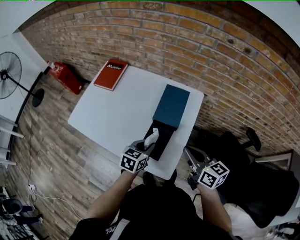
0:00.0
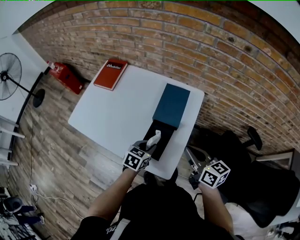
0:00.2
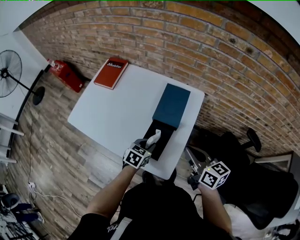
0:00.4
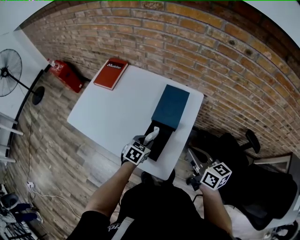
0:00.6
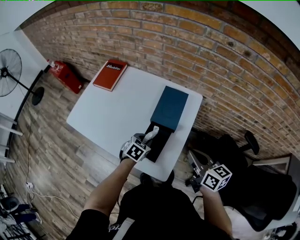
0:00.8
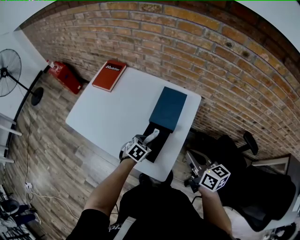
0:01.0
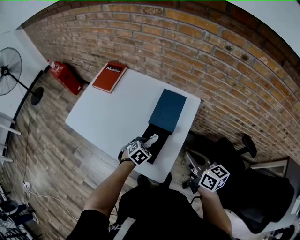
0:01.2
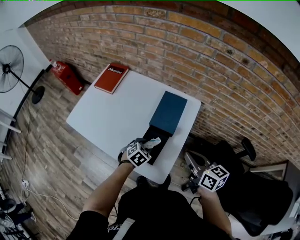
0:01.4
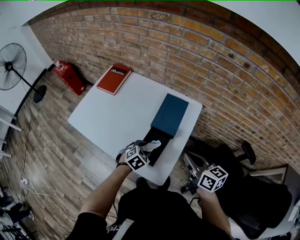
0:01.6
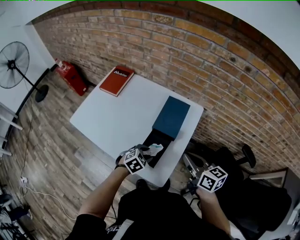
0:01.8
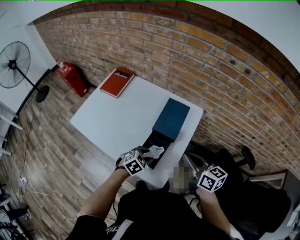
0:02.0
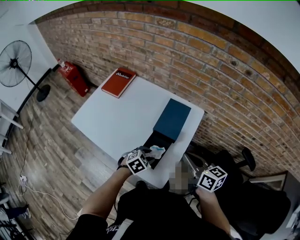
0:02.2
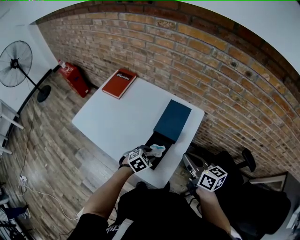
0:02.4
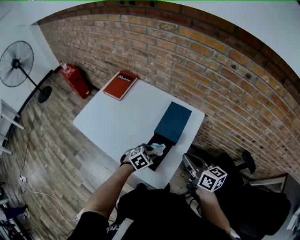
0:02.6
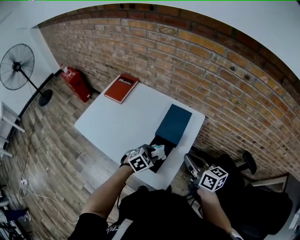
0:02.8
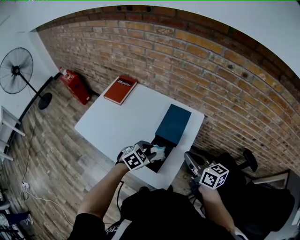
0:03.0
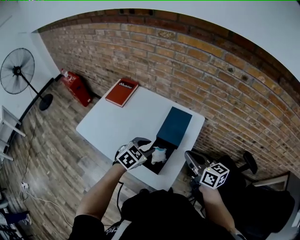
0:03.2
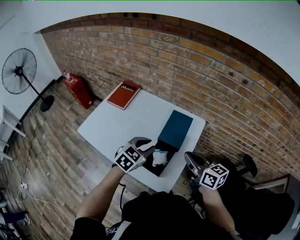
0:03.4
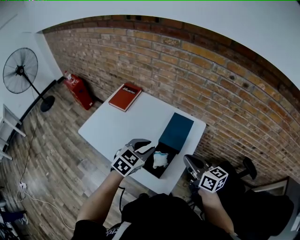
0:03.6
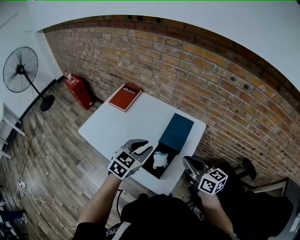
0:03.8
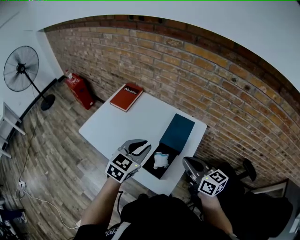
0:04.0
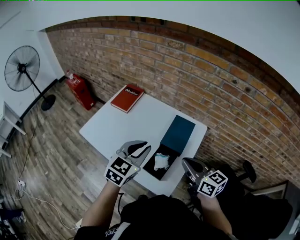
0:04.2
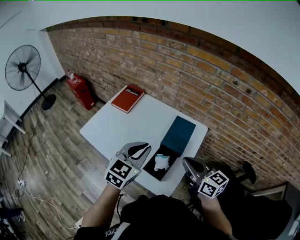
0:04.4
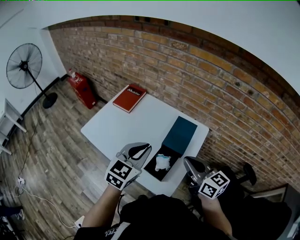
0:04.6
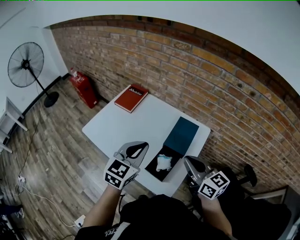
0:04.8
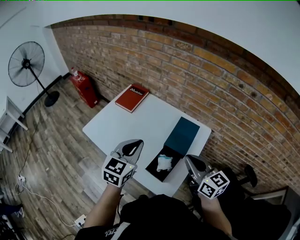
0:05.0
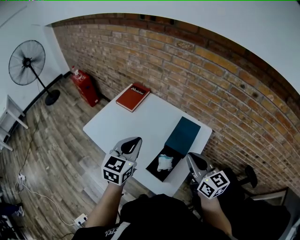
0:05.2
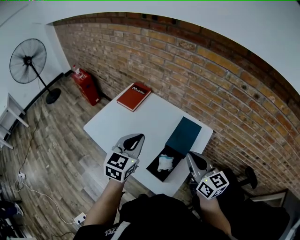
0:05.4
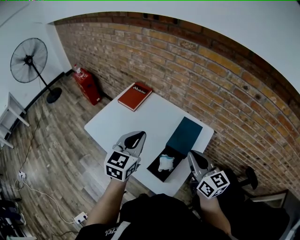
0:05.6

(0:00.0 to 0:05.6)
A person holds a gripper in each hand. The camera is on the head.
0:00.0 - 0:01.4: The left gripper heads downward, covering about 5 cm, rotates some 30 degrees, and opens.
0:01.4 - 0:02.8: The left gripper is displaced upward by roughly 5 cm.
0:02.8 - 0:04.2: The left gripper goes approximately 25 cm upward, and tilts its fingers some 30 degrees upward; the right gripper is displaced upward and to the left by roughly 10 cm.
0:04.2 - 0:05.6: The left gripper heads to the left, covering approximately 5 cm; the right gripper moves approximately 5 cm.

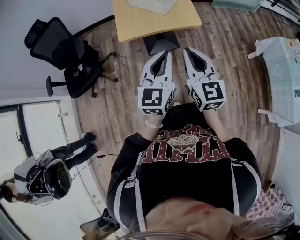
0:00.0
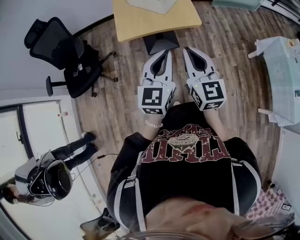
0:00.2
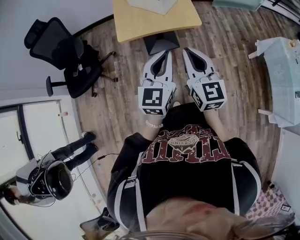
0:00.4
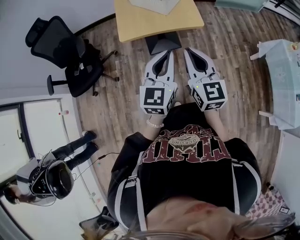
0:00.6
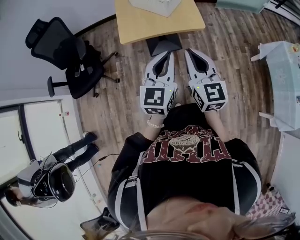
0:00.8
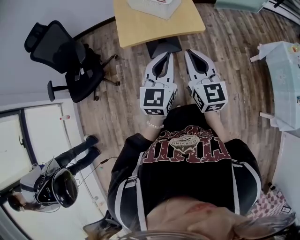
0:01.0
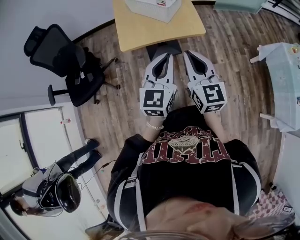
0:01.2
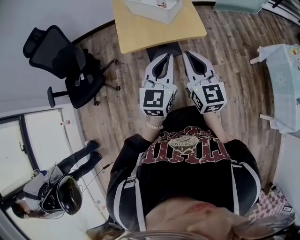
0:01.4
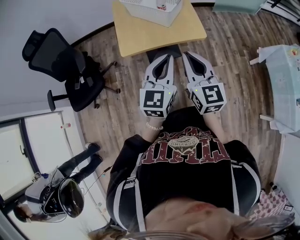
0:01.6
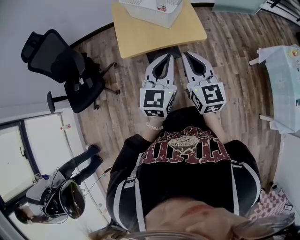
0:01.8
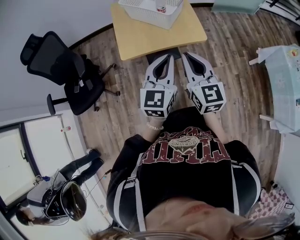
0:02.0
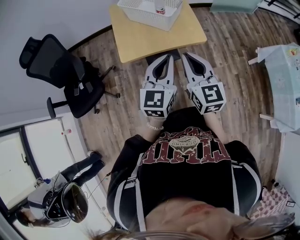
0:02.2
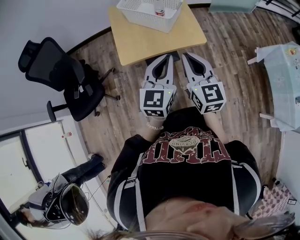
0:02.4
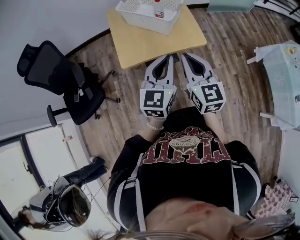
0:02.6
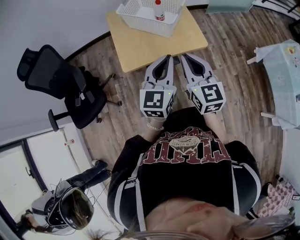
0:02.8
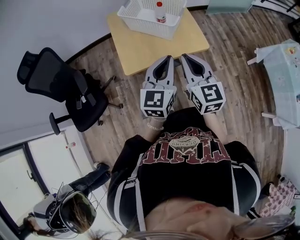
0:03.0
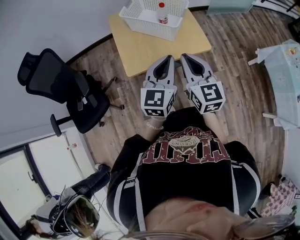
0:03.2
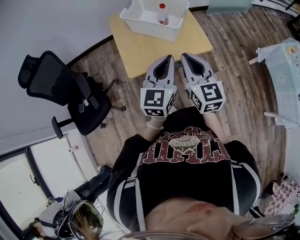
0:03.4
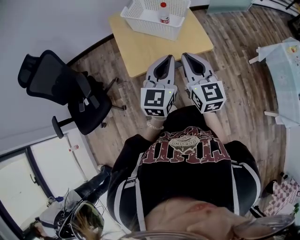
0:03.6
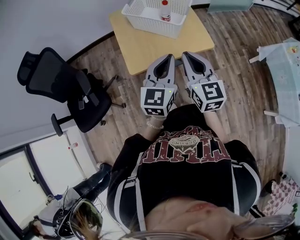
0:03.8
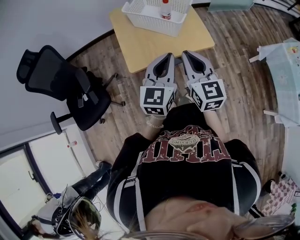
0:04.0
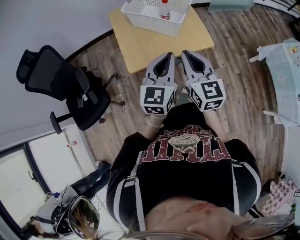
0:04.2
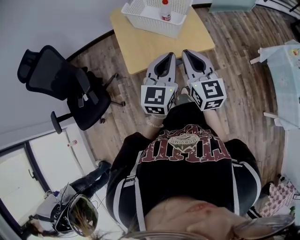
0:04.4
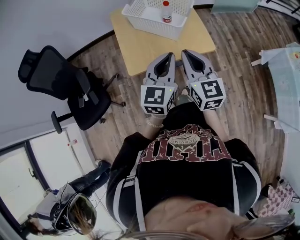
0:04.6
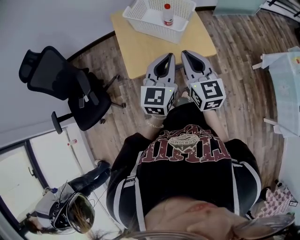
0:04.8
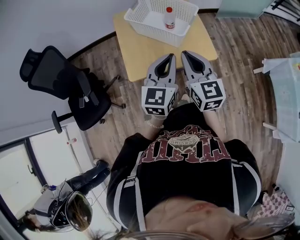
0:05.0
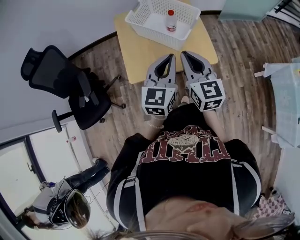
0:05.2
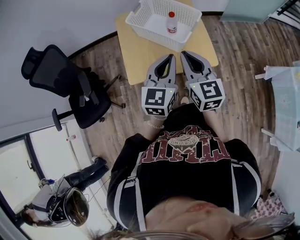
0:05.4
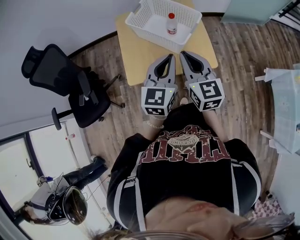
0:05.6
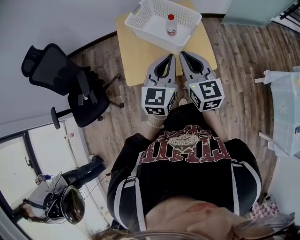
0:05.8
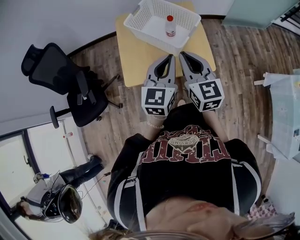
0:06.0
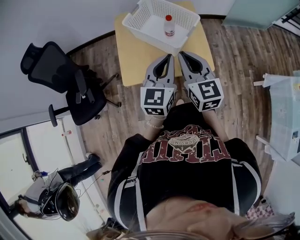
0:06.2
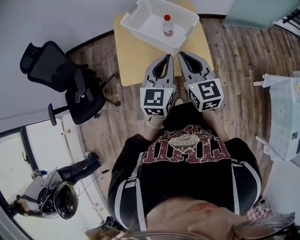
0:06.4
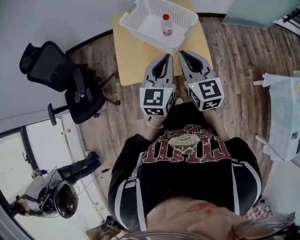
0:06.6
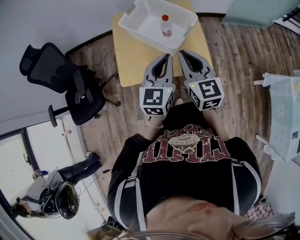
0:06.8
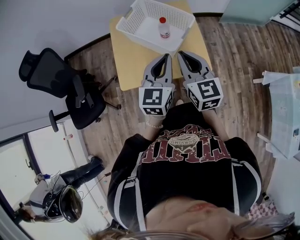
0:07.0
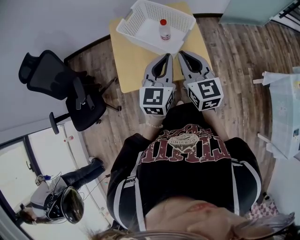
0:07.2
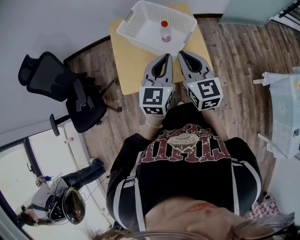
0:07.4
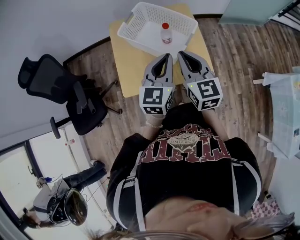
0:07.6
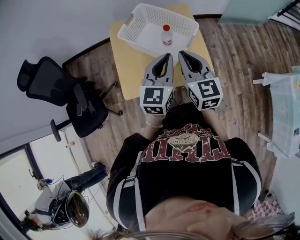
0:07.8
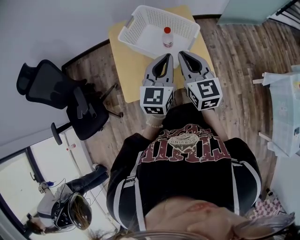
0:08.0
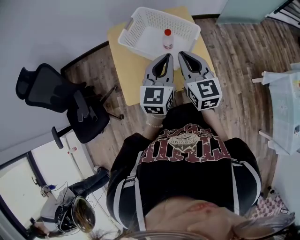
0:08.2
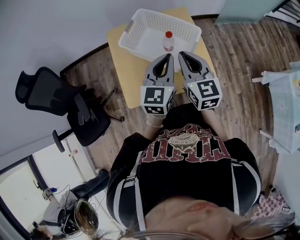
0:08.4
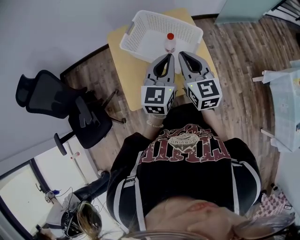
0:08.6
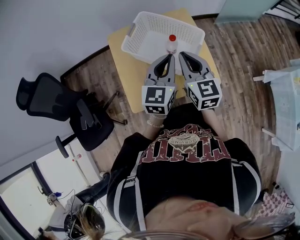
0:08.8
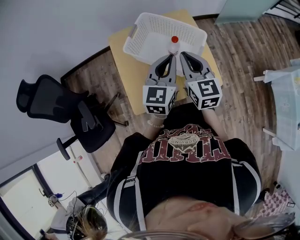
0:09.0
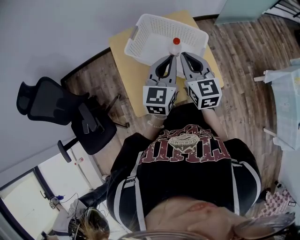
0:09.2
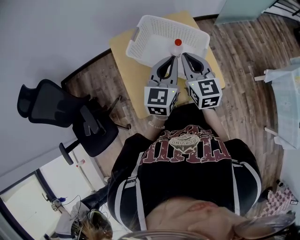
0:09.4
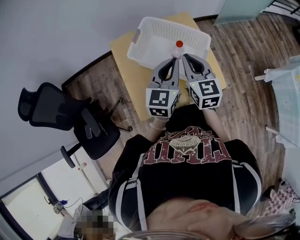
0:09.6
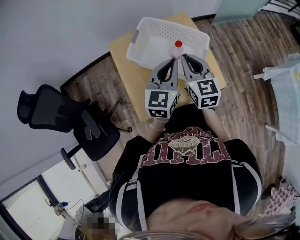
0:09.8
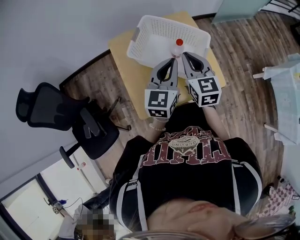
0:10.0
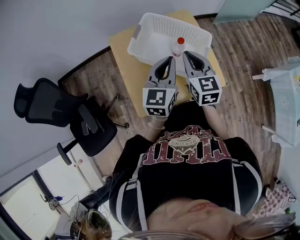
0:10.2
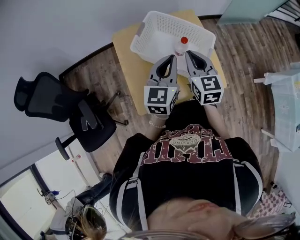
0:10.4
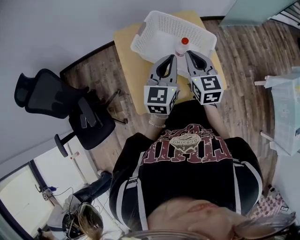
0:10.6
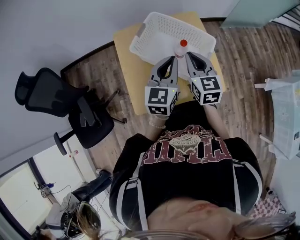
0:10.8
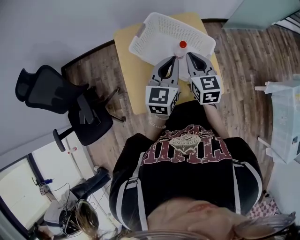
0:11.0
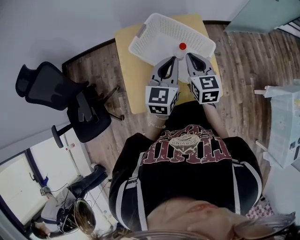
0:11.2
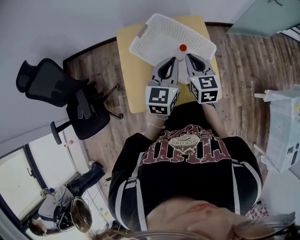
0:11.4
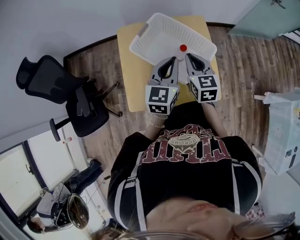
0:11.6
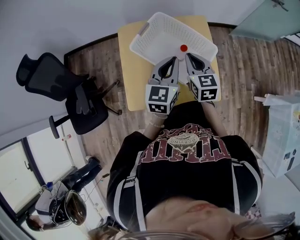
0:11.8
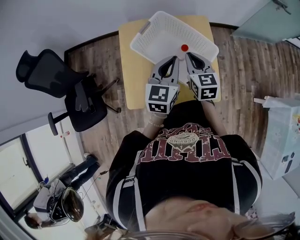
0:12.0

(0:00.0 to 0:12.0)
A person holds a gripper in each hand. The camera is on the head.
0:00.0 - 0:01.6: The grippers both shift forward by approximately 10 cm.
0:01.6 - 0:03.0: The two grippers go approximately 10 cm forward.
0:03.0 - 0:04.4: The grippers make only small movements.
0:04.4 - 0:06.0: The right gripper travels forward by about 15 cm. Meanwhile the left gripper heads forward and to the right, covering roughly 15 cm.
0:06.0 - 0:07.6: The two grippers go roughly 5 cm forward.
0:07.6 - 0:09.0: The grippers both shift forward by approximately 10 cm.
0:09.0 - 0:10.4: The grippers stay close to where they were, moving slightly.
0:10.4 - 0:12.0: The left gripper ends up approximately 5 cm from where it was. The right gripper changes place by about 5 cm.

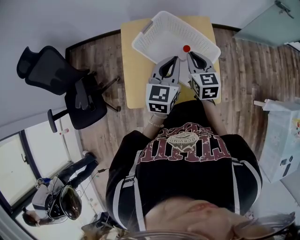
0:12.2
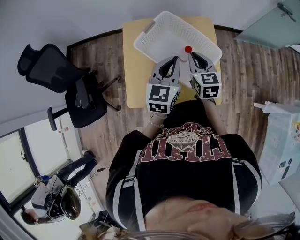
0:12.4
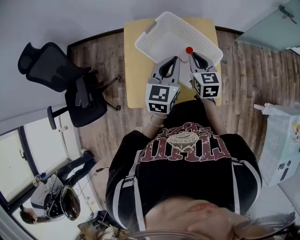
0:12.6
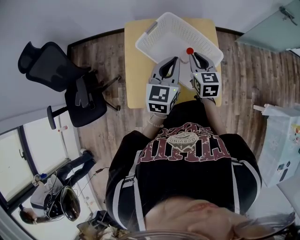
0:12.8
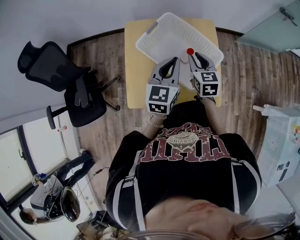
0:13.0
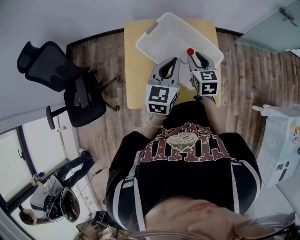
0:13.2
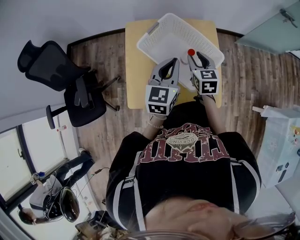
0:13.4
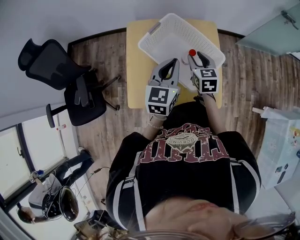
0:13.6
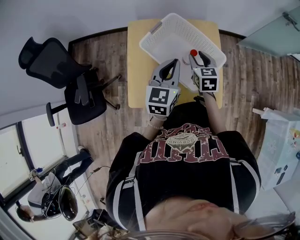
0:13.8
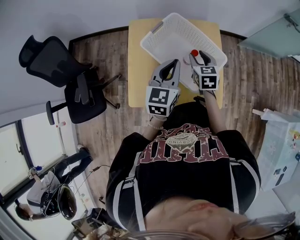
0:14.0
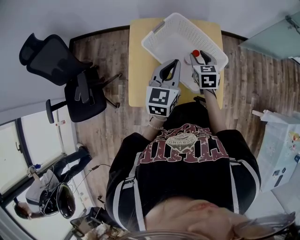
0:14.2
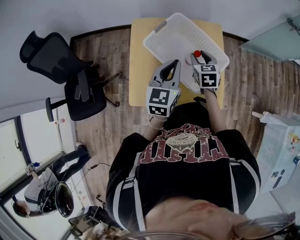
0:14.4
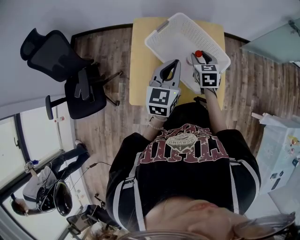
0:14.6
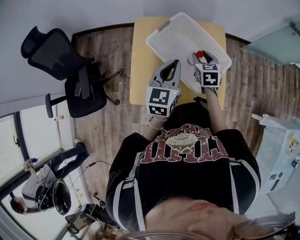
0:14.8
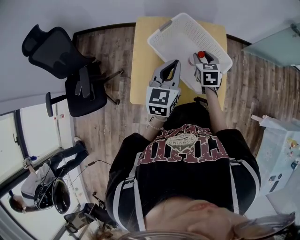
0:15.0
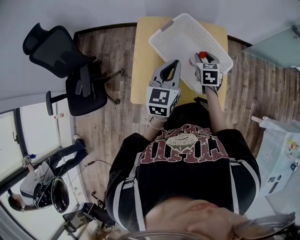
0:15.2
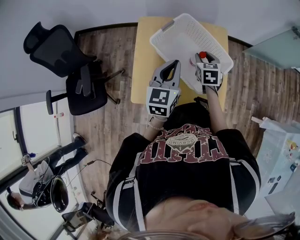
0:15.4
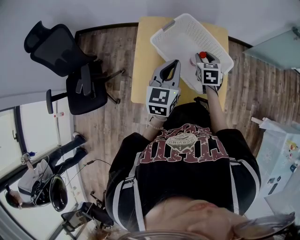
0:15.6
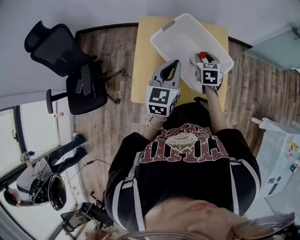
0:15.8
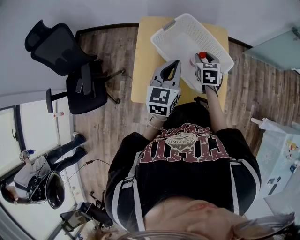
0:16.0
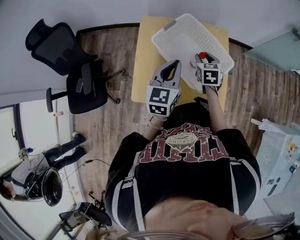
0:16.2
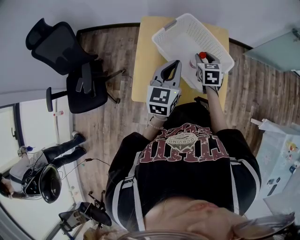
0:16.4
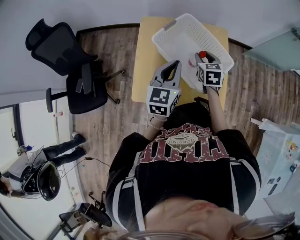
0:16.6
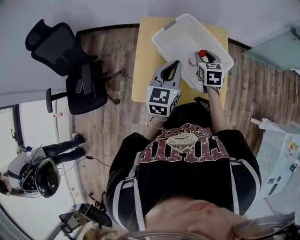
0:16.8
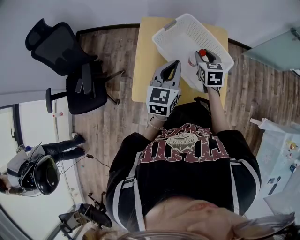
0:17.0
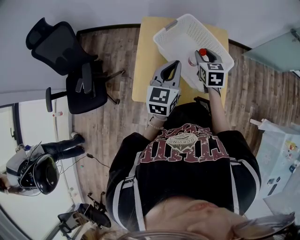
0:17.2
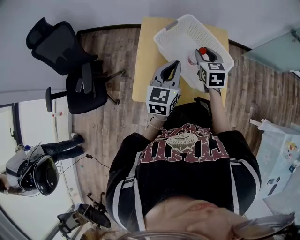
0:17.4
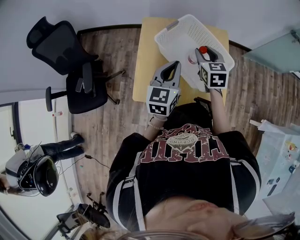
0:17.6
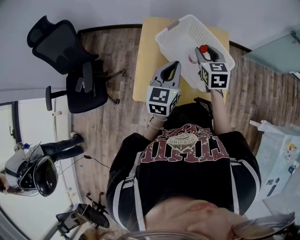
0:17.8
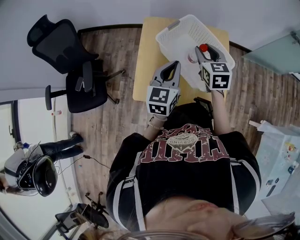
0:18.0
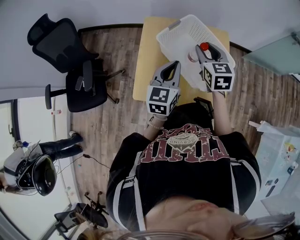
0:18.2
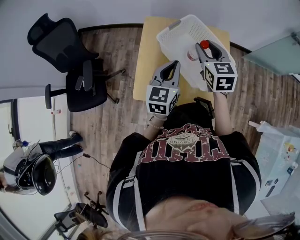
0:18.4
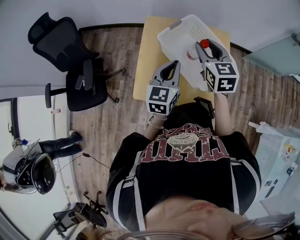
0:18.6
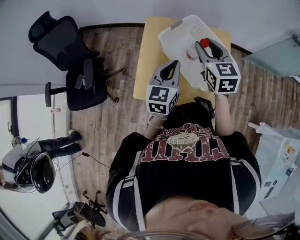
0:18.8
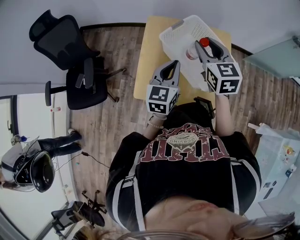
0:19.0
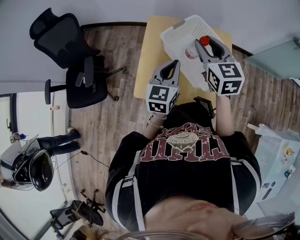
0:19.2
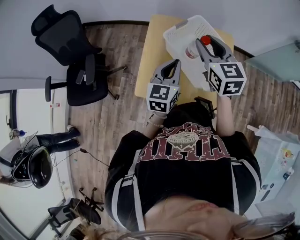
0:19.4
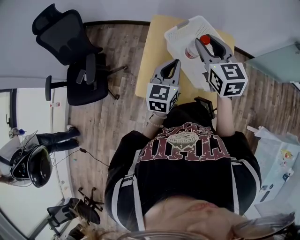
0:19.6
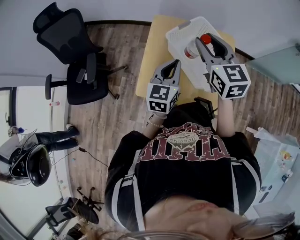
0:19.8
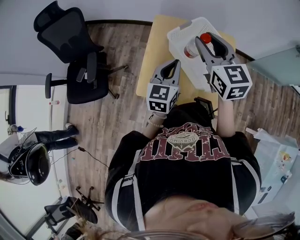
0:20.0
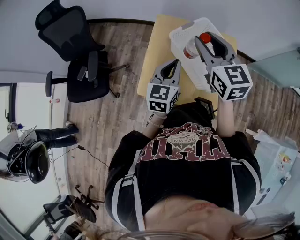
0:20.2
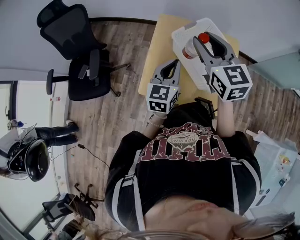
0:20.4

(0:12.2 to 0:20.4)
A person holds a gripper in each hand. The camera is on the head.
0:12.2 - 0:13.8: The right gripper ends up about 5 cm from where it was, and opens its fingers.
0:13.8 - 0:15.4: The grippers move only a little.
0:15.4 - 0:17.2: The right gripper heads upward, covering roughly 5 cm.
0:17.2 - 0:18.8: The right gripper goes about 10 cm upward.
0:18.8 - 0:20.4: The right gripper shifts about 10 cm upward and to the left.
